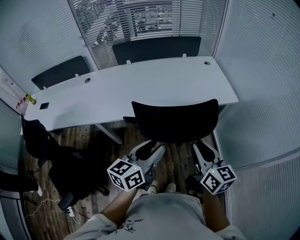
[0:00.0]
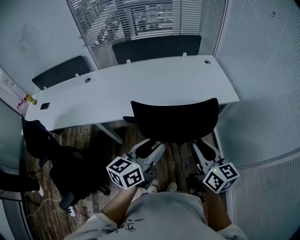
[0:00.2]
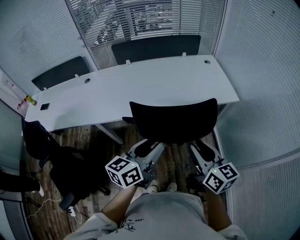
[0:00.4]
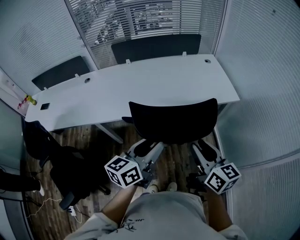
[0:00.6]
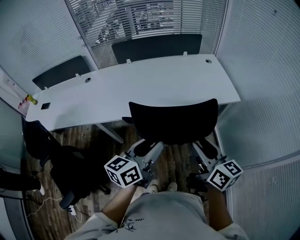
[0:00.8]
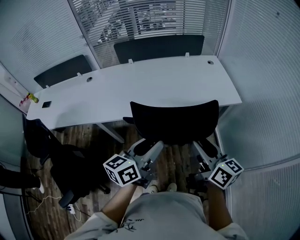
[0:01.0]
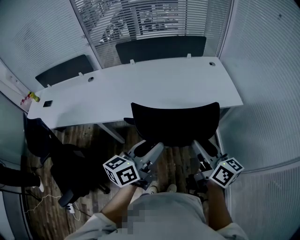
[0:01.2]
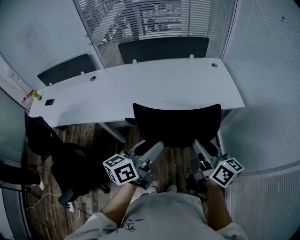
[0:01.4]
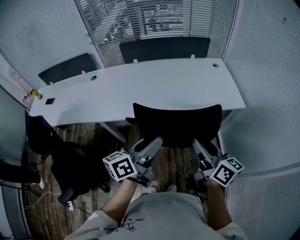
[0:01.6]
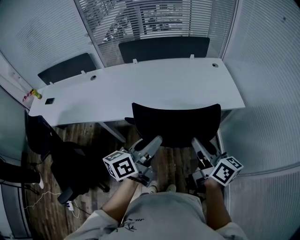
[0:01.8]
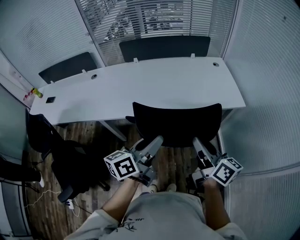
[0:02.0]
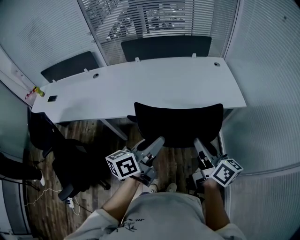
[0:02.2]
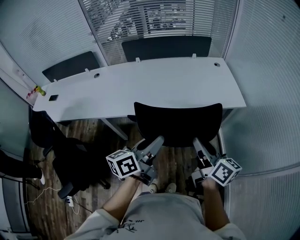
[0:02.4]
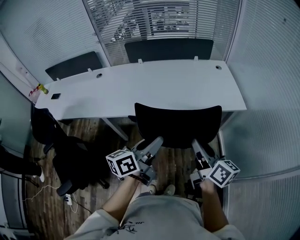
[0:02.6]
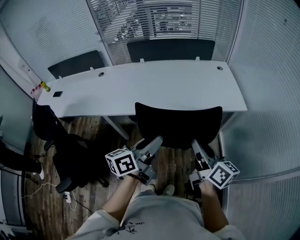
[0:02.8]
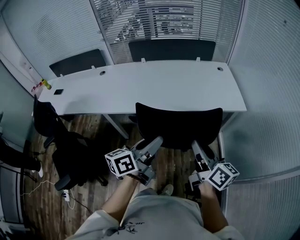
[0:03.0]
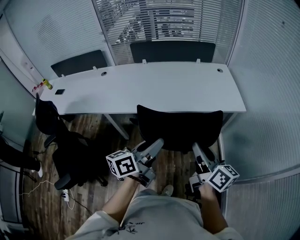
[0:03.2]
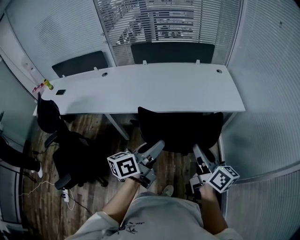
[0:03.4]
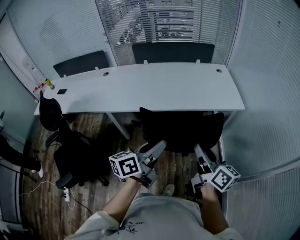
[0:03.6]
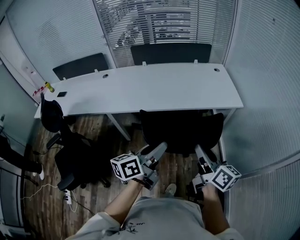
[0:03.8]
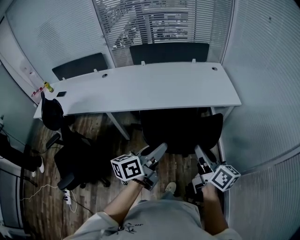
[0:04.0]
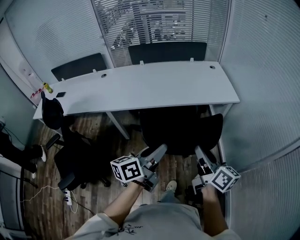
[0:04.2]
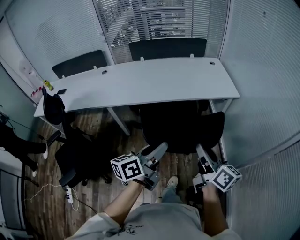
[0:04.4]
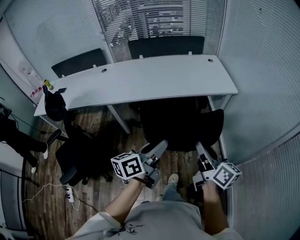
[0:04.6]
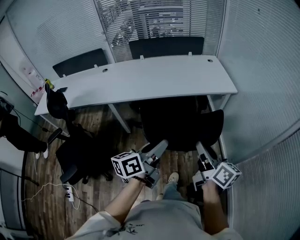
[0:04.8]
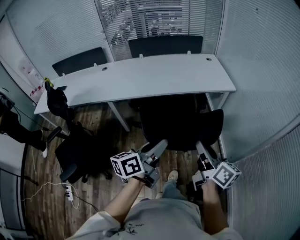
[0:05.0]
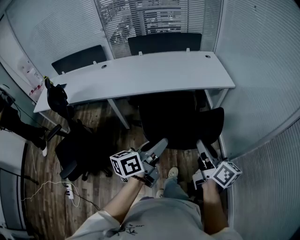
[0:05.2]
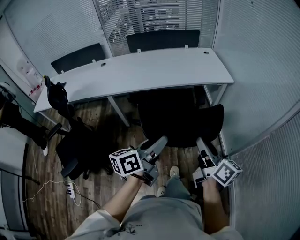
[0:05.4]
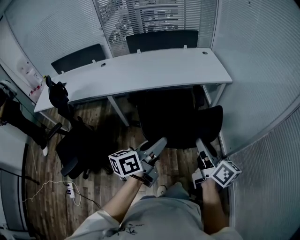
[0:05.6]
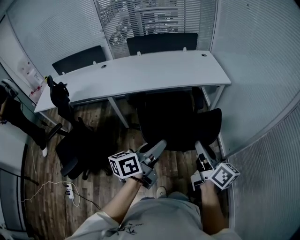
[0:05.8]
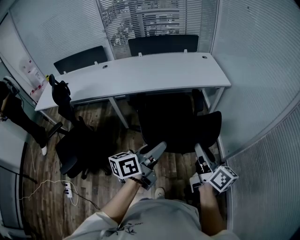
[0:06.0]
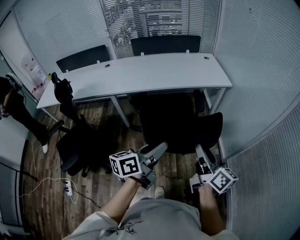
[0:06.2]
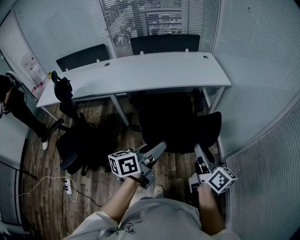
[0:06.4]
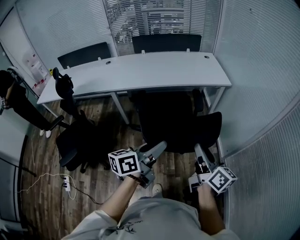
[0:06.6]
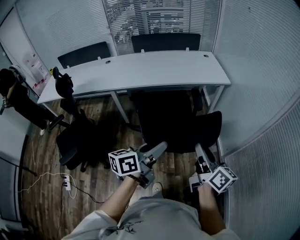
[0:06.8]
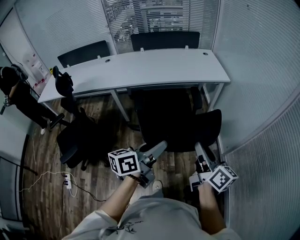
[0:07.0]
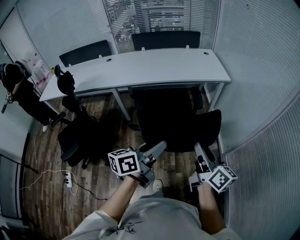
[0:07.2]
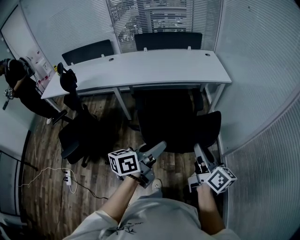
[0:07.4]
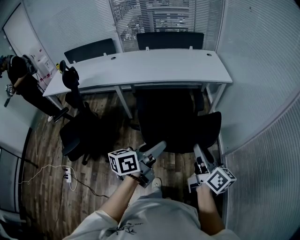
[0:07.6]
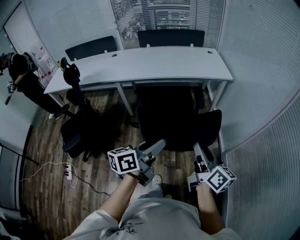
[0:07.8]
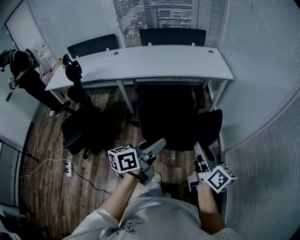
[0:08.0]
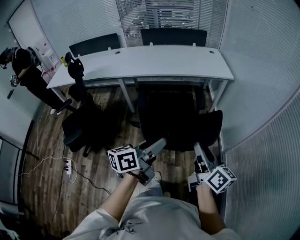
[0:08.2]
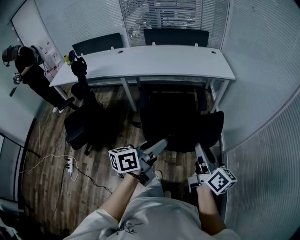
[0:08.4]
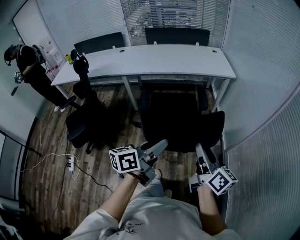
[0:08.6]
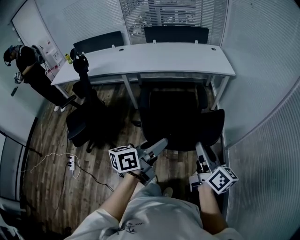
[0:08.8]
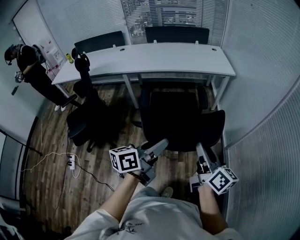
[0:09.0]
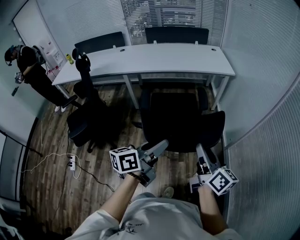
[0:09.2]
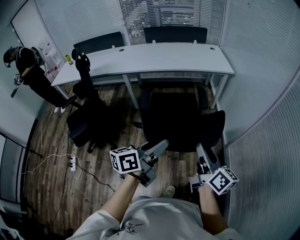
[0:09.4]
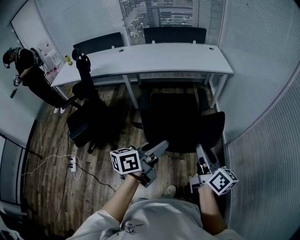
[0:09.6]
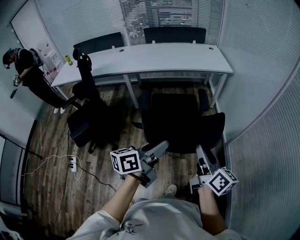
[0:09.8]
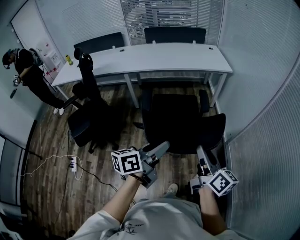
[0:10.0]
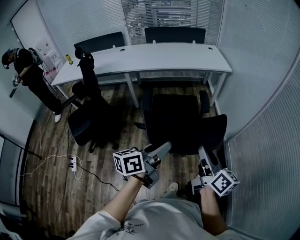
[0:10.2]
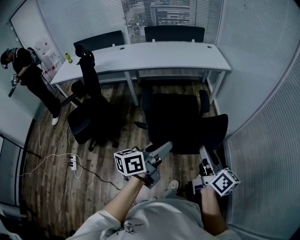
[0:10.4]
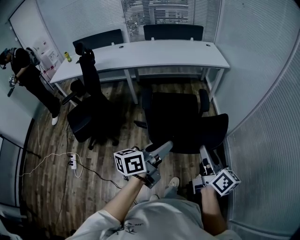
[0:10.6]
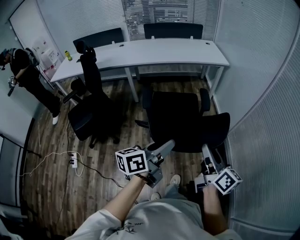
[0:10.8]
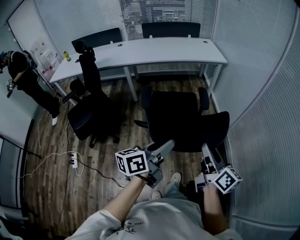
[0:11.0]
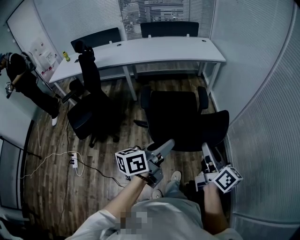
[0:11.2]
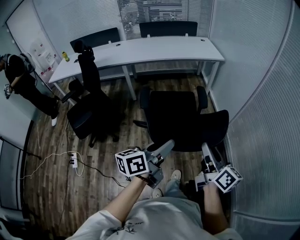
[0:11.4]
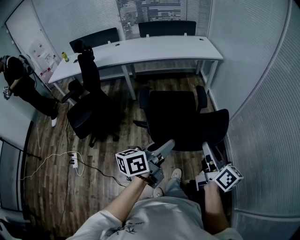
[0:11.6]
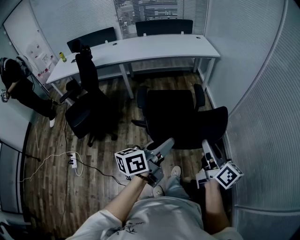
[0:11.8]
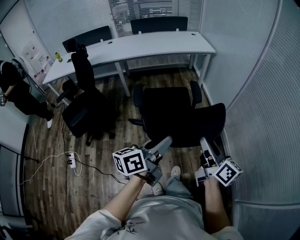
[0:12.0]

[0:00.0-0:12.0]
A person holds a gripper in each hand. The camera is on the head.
0:00.0 to 0:01.6: The right gripper changes its angle by roughly 20 degrees, and opens.
0:01.6 to 0:03.0: There are only small adjustments of the grippers.
0:03.0 to 0:04.4: Both grippers travel together backward, roughly 20 cm.
0:04.4 to 0:06.0: The two grippers go about 15 cm backward.
0:06.0 to 0:07.6: Both grippers travel together backward, about 10 cm.
0:07.6 to 0:09.0: The two grippers go about 10 cm backward.
0:09.0 to 0:10.4: The grippers both shift backward by about 15 cm.
0:10.4 to 0:12.0: Both grippers move backward, roughly 10 cm.

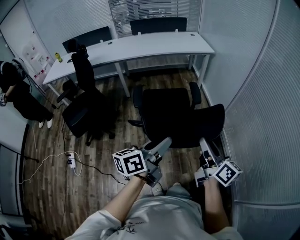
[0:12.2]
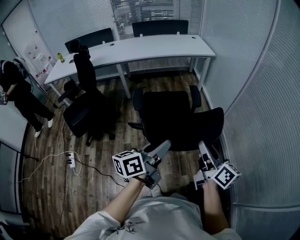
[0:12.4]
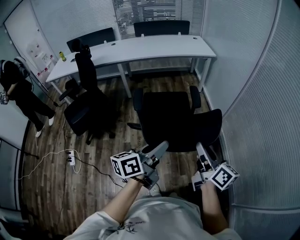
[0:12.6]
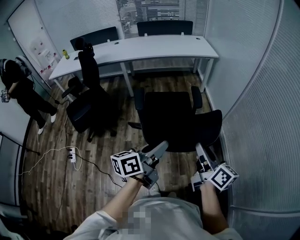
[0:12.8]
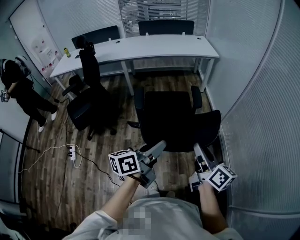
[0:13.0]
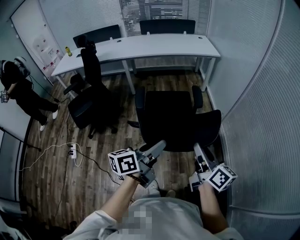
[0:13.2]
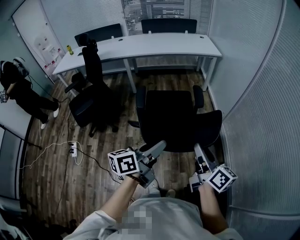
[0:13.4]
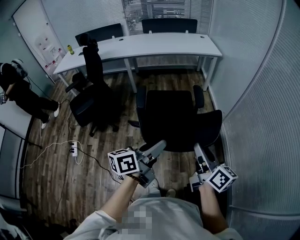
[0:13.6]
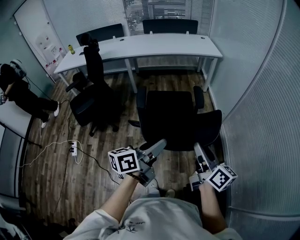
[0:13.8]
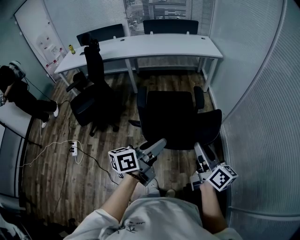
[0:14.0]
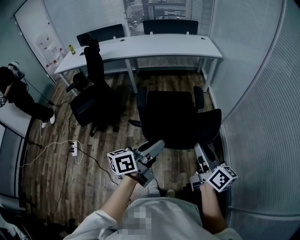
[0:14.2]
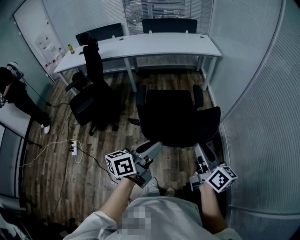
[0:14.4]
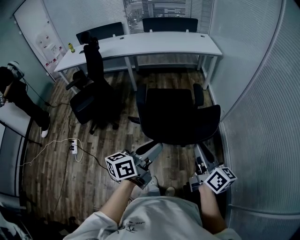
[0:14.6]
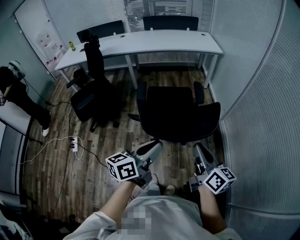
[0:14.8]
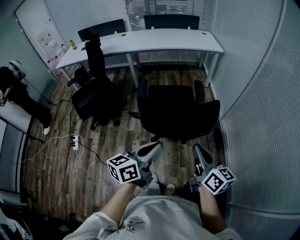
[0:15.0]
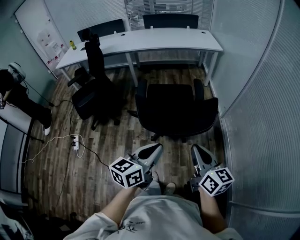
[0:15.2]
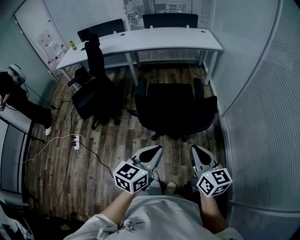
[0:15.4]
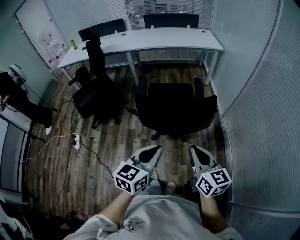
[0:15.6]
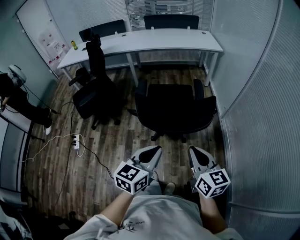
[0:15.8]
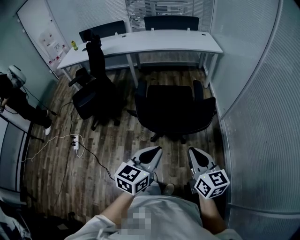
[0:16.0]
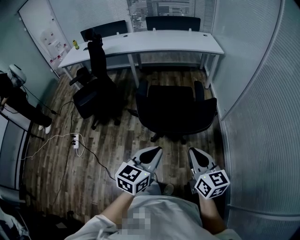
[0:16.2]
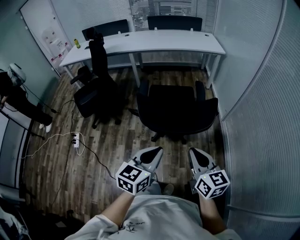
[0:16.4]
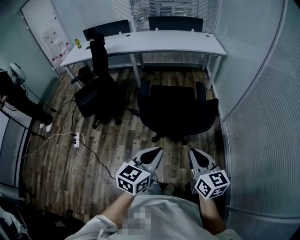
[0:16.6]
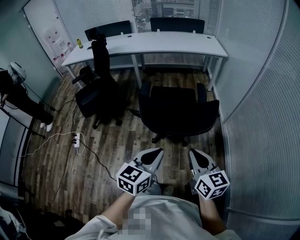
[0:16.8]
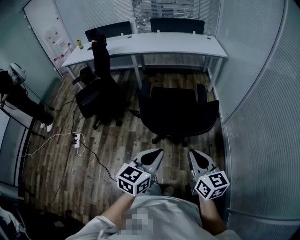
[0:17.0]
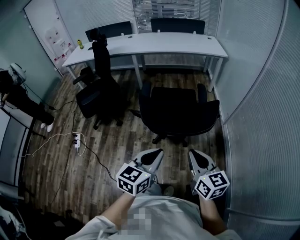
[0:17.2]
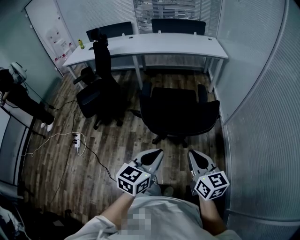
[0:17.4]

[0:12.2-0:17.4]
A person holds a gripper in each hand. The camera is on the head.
0:12.2 to 0:14.0: The left gripper changes place by roughly 5 cm.
0:14.0 to 0:15.6: The two grippers go approximately 10 cm backward. The right gripper rotates some 30 degrees, and closes up; the left gripper changes its angle by approximately 40 degrees, and closes its fingers.
0:15.6 to 0:17.4: The grippers stay close to where they were, moving slightly.

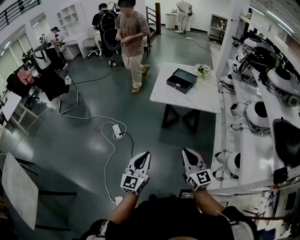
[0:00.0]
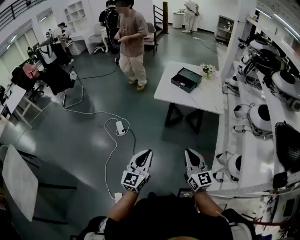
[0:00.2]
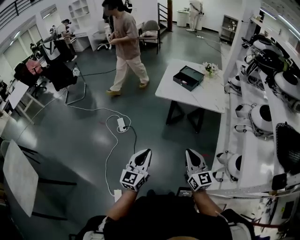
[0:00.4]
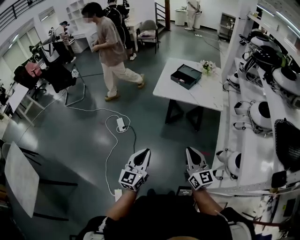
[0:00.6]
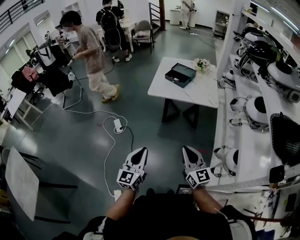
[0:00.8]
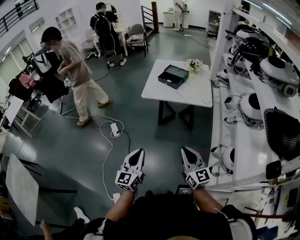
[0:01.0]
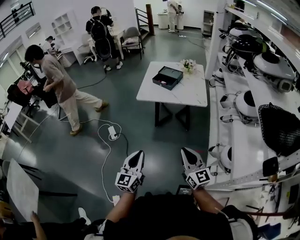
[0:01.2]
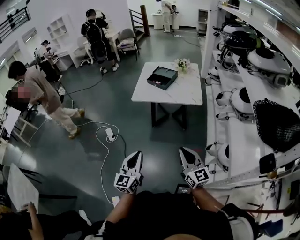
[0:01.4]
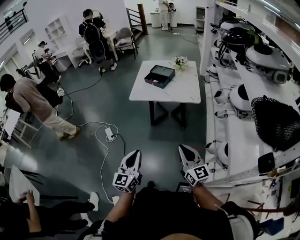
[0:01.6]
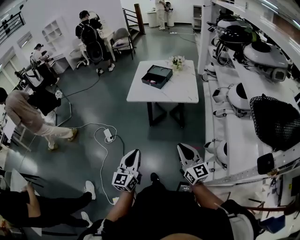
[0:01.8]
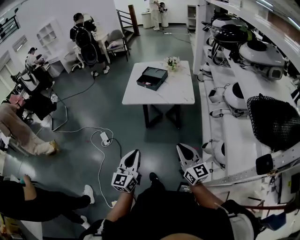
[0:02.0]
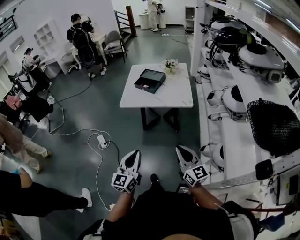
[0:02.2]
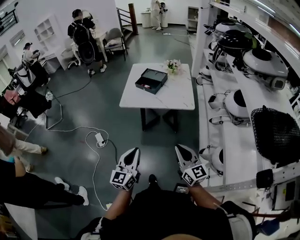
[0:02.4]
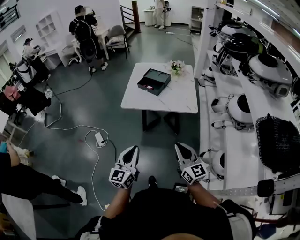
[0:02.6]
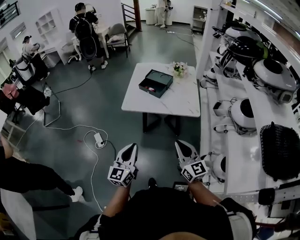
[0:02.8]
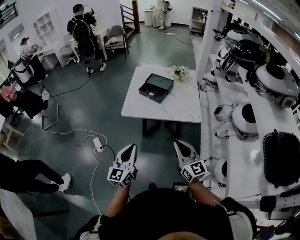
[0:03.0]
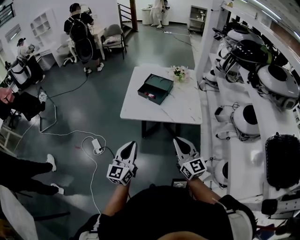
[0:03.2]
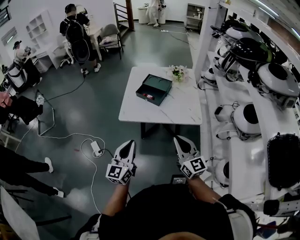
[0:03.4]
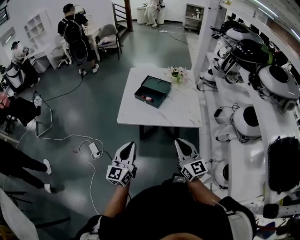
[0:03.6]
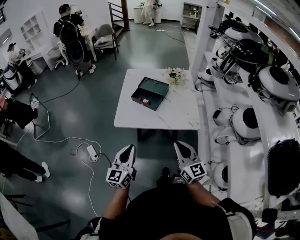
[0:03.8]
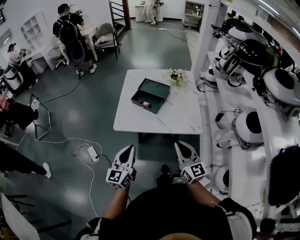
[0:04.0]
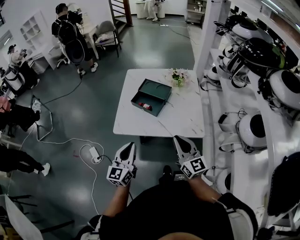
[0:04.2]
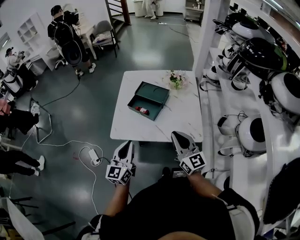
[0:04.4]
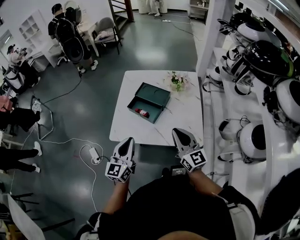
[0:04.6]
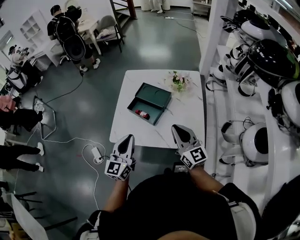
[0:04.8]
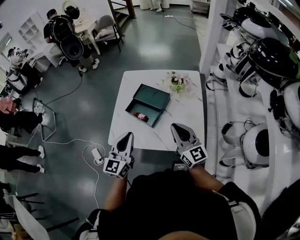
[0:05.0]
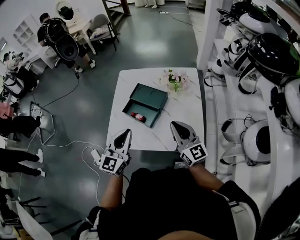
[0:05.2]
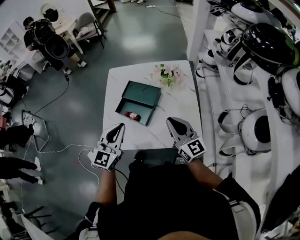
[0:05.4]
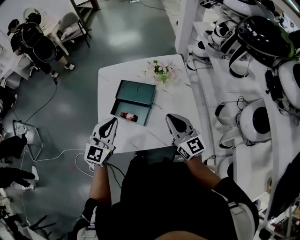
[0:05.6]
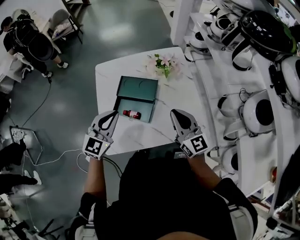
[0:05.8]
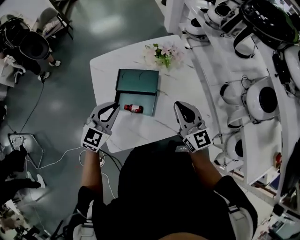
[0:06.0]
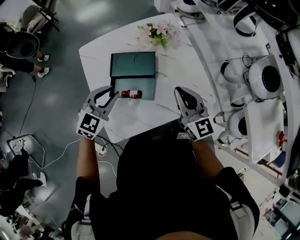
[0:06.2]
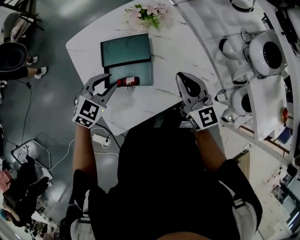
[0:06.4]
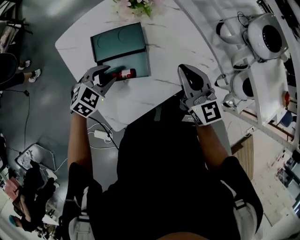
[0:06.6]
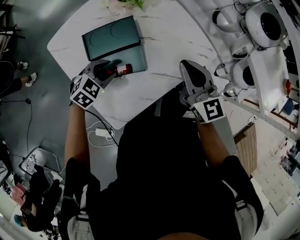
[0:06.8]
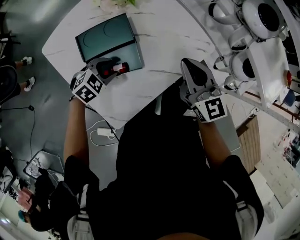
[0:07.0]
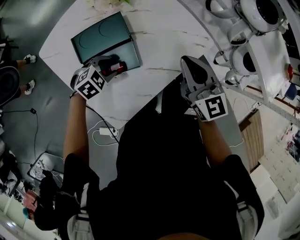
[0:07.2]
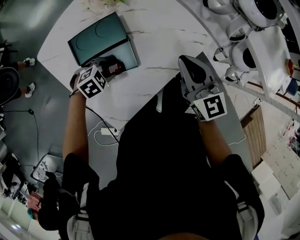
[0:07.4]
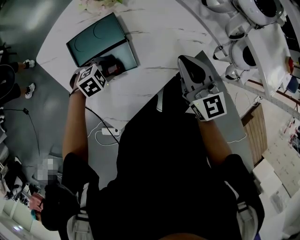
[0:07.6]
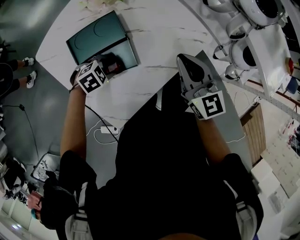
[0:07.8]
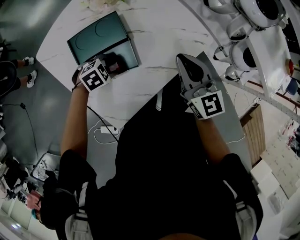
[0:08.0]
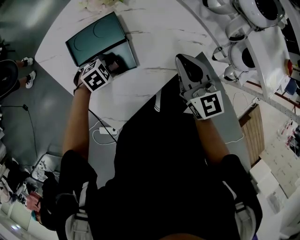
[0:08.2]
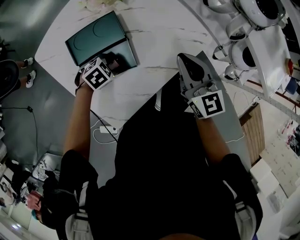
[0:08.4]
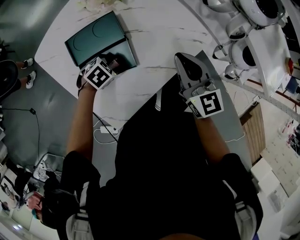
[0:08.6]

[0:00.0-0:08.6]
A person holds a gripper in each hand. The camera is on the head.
0:00.0 to 0:01.4: Both grippers travel together to the right, some 15 cm.
0:01.4 to 0:02.8: Both grippers move forward, roughly 20 cm.
0:02.8 to 0:04.4: Both grippers move forward, about 30 cm.
0:04.4 to 0:05.8: Both grippers travel together forward, some 20 cm. The left gripper rotates approximately 40 degrees.
0:05.8 to 0:07.2: The right gripper shifts some 5 cm downward, and rotates approximately 30 degrees, while the left gripper shifts roughly 25 cm downward, angles its fingers downward, by some 50 degrees, and opens its fingers.
0:07.2 to 0:08.6: The grippers stay close to where they were, moving slightly.
